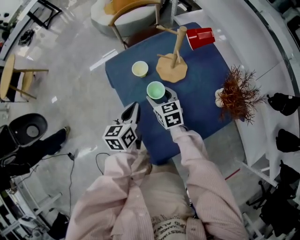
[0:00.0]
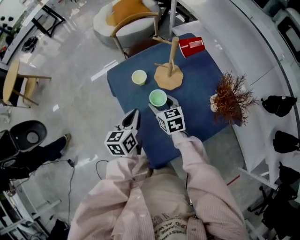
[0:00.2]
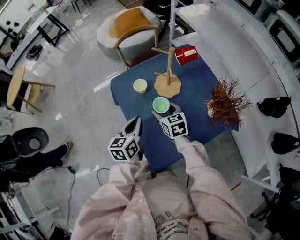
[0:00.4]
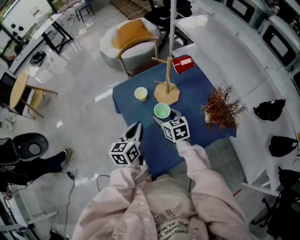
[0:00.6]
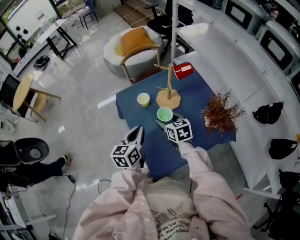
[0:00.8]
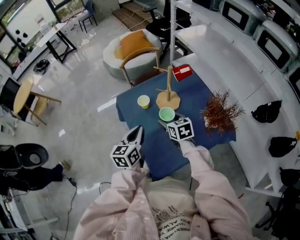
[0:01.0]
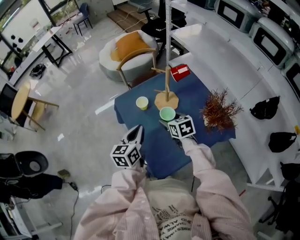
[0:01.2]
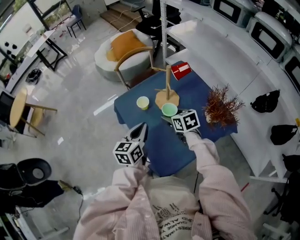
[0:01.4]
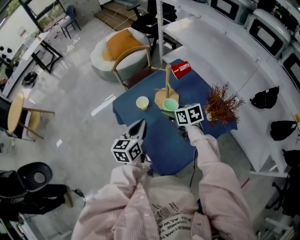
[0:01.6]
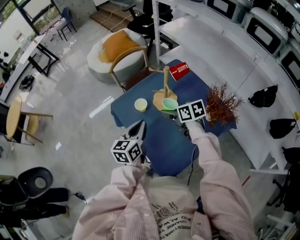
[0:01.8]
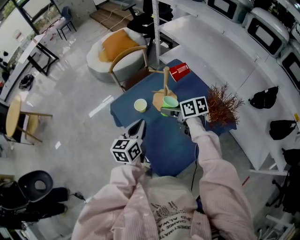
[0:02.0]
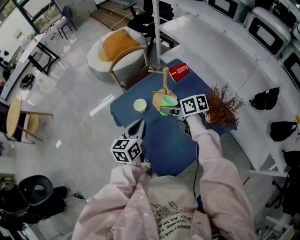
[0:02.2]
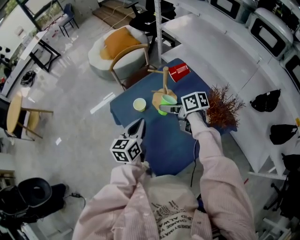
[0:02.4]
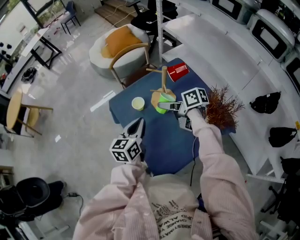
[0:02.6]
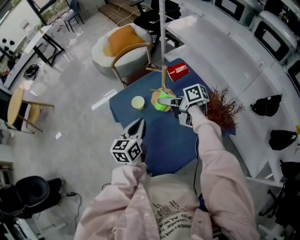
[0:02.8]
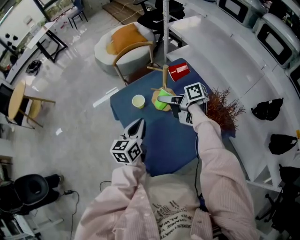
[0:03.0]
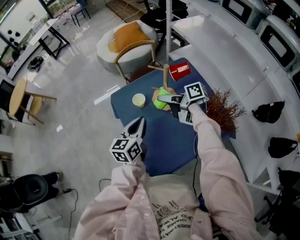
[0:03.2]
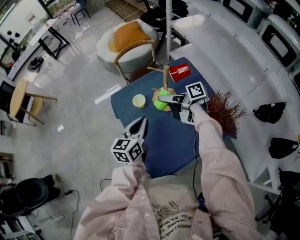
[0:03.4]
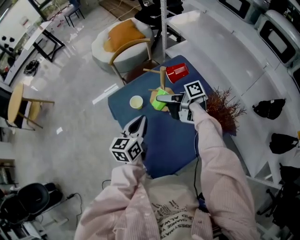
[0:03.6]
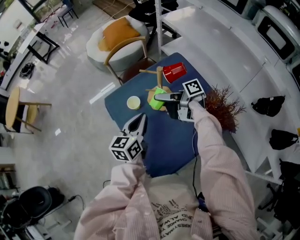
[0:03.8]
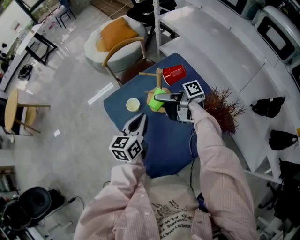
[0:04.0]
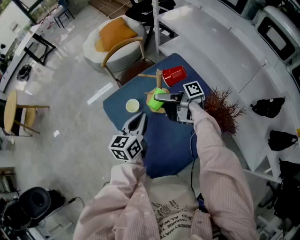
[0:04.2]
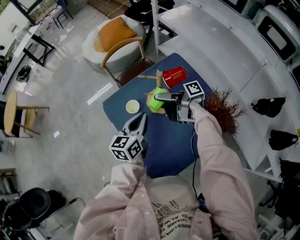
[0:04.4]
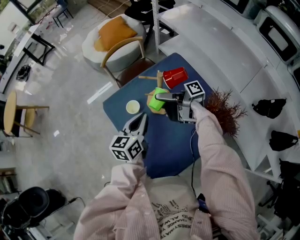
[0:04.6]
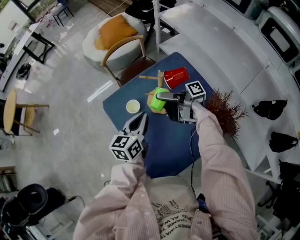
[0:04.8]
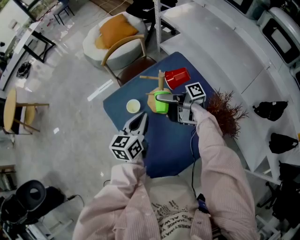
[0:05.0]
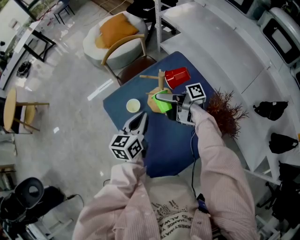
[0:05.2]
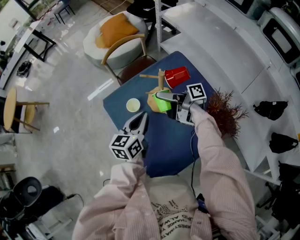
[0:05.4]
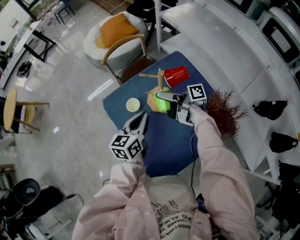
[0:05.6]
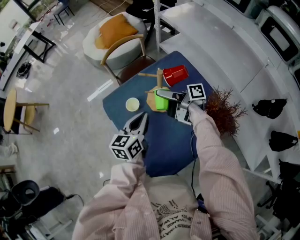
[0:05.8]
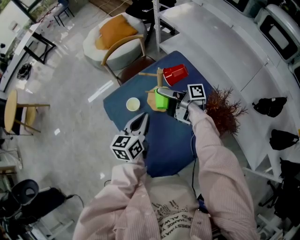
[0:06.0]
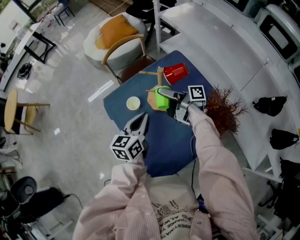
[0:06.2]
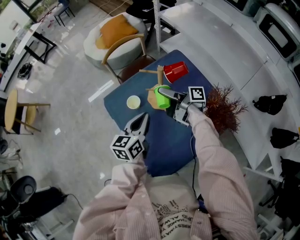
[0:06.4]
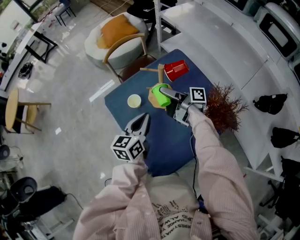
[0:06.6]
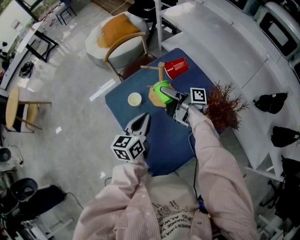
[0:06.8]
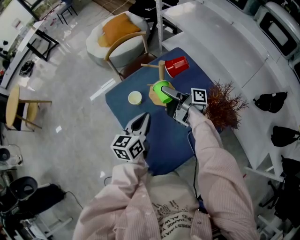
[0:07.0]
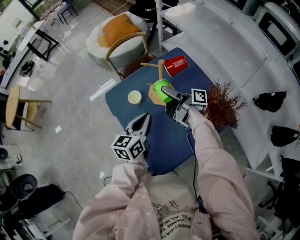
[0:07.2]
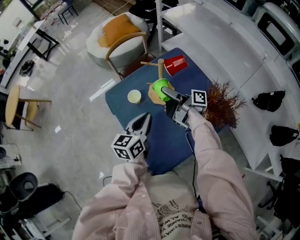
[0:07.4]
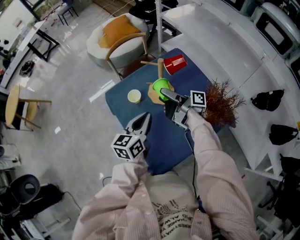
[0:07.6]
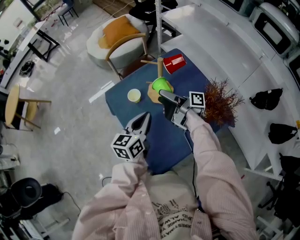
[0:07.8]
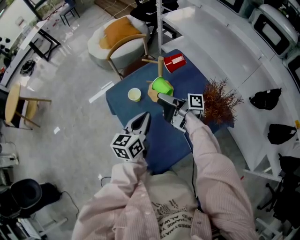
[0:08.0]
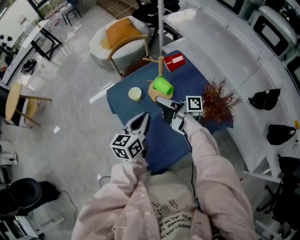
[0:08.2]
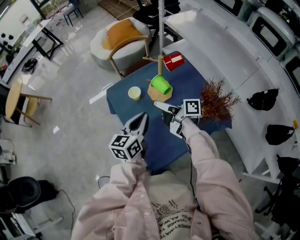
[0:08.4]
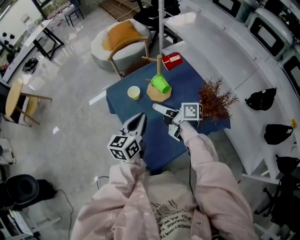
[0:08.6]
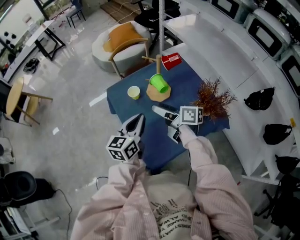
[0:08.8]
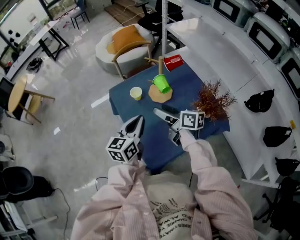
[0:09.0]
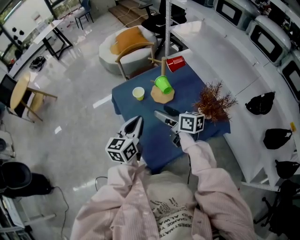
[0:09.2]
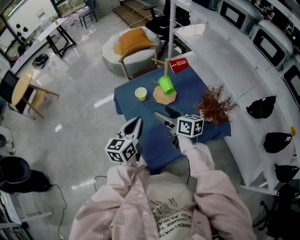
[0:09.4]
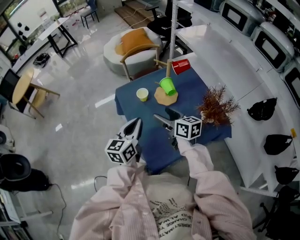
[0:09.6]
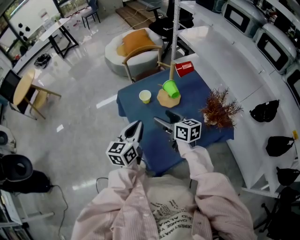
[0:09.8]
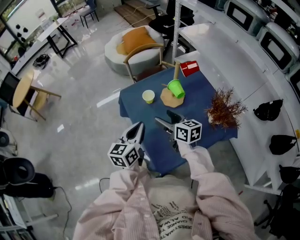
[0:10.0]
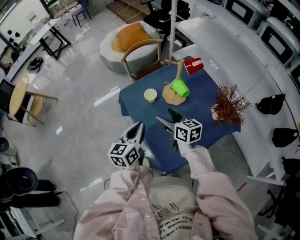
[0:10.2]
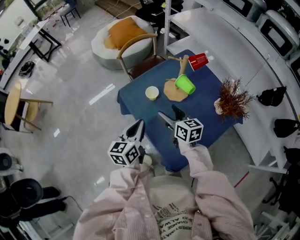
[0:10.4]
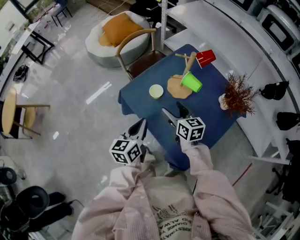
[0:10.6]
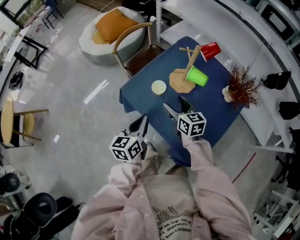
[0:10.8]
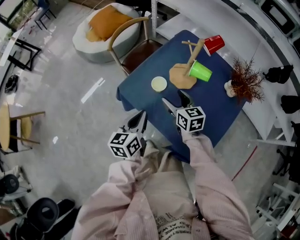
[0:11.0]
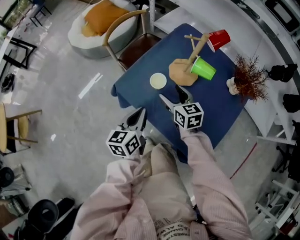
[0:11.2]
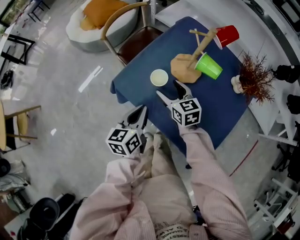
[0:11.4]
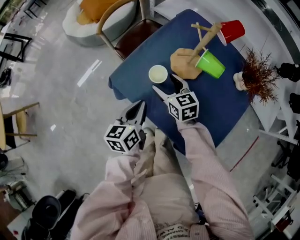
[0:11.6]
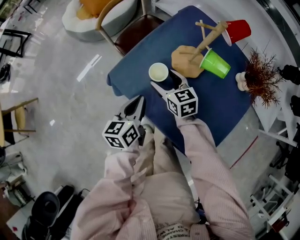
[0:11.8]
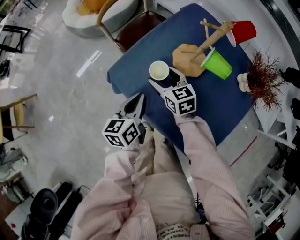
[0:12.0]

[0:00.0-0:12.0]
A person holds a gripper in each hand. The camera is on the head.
0:00.0 to 0:01.6: The right gripper is displaced upward and to the right by about 15 cm; the left gripper moves upward, some 10 cm.
0:01.6 to 0:03.0: The right gripper changes place by approximately 5 cm, and changes its angle by approximately 50 degrees.
0:03.0 to 0:04.4: The right gripper changes its angle by about 30 degrees. The left gripper moves to the right and forward, approximately 5 cm.
0:04.4 to 0:06.0: The grippers stay close to where they were, moving slightly.
0:06.0 to 0:07.6: The left gripper goes approximately 5 cm backward. Meanwhile the right gripper shifts by about 5 cm.
0:07.6 to 0:09.0: The left gripper goes about 5 cm backward. Meanwhile the right gripper moves backward, roughly 10 cm, and turns by approximately 40 degrees.
0:09.0 to 0:10.4: The right gripper heads to the left and downward, covering some 10 cm, and turns by about 30 degrees. The left gripper moves to the left and forward, roughly 15 cm.
0:10.4 to 0:12.0: The right gripper goes about 20 cm downward, forward and to the left, while the left gripper moves downward and forward, some 15 cm.

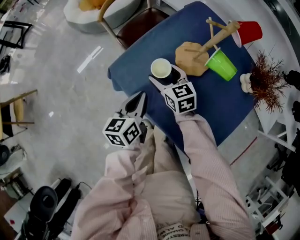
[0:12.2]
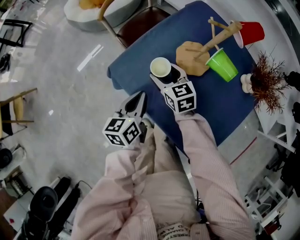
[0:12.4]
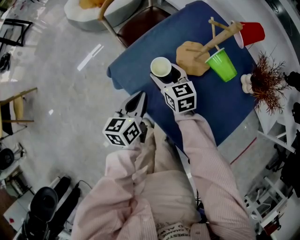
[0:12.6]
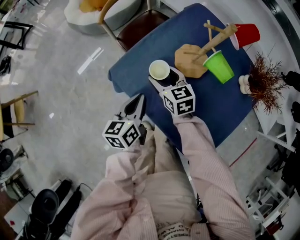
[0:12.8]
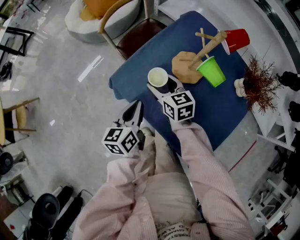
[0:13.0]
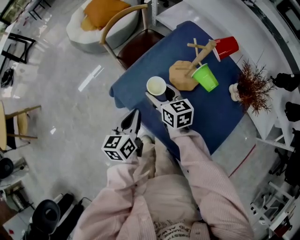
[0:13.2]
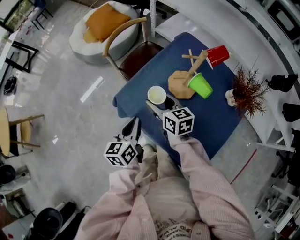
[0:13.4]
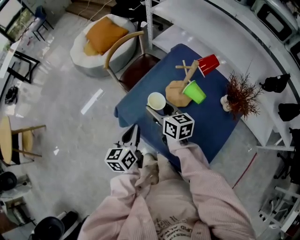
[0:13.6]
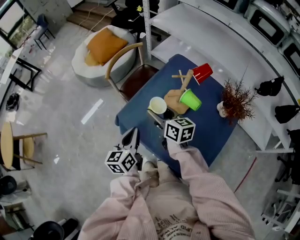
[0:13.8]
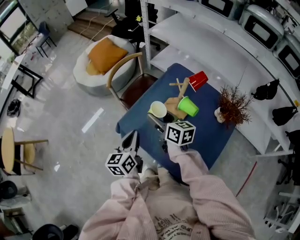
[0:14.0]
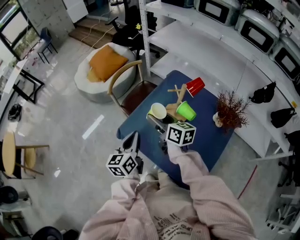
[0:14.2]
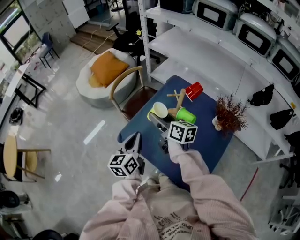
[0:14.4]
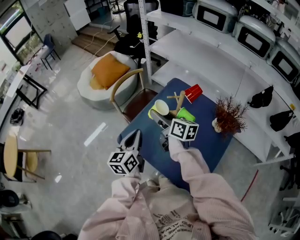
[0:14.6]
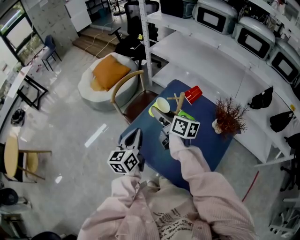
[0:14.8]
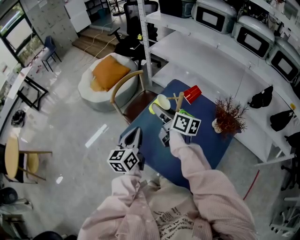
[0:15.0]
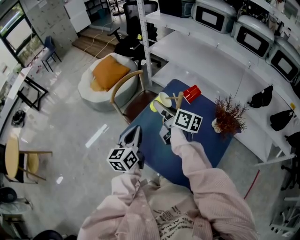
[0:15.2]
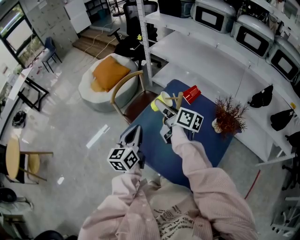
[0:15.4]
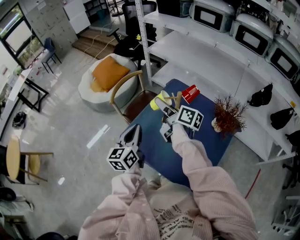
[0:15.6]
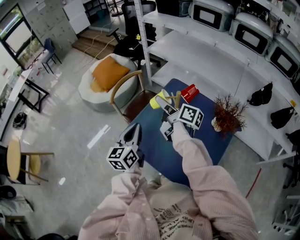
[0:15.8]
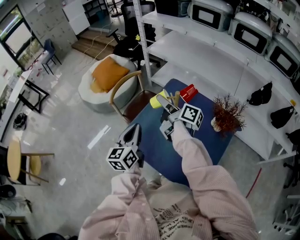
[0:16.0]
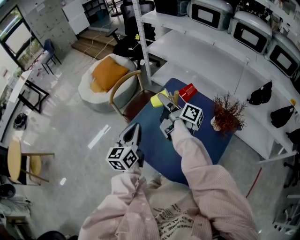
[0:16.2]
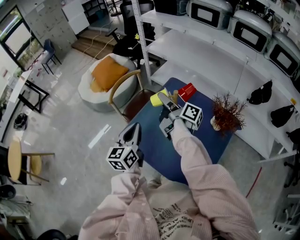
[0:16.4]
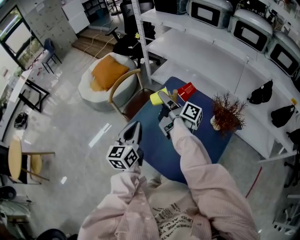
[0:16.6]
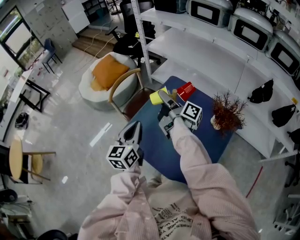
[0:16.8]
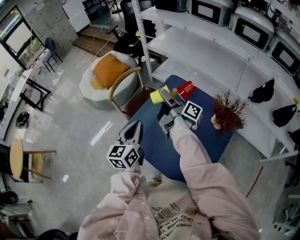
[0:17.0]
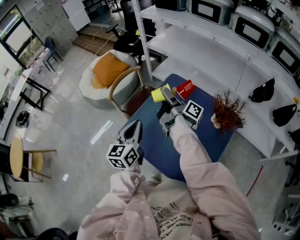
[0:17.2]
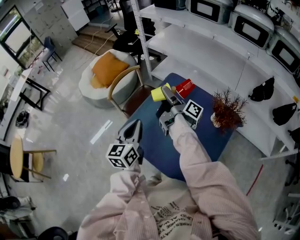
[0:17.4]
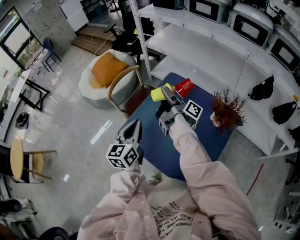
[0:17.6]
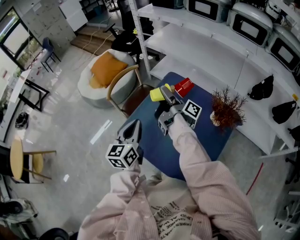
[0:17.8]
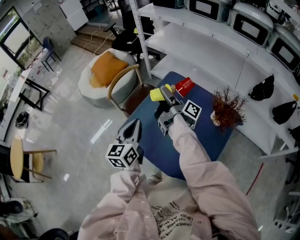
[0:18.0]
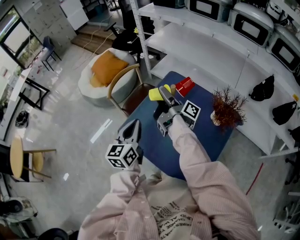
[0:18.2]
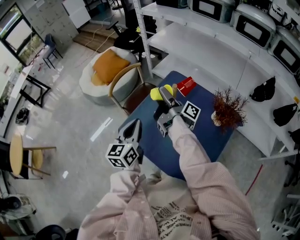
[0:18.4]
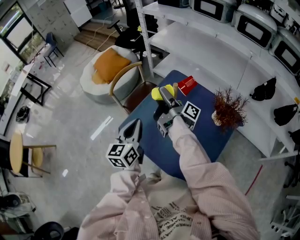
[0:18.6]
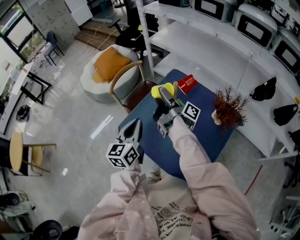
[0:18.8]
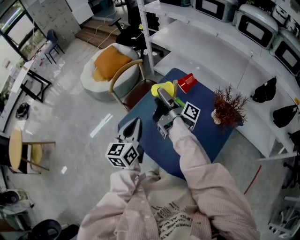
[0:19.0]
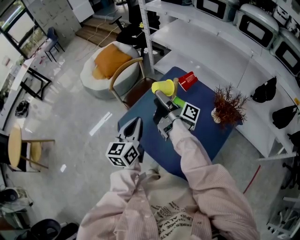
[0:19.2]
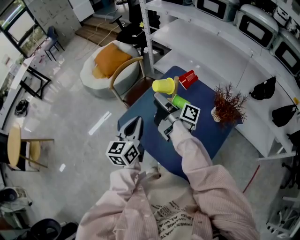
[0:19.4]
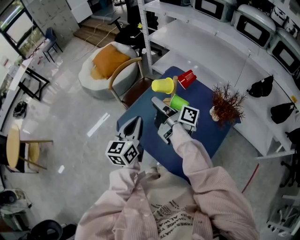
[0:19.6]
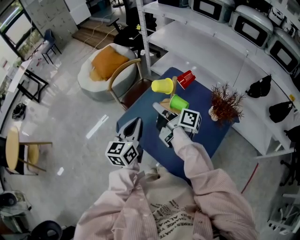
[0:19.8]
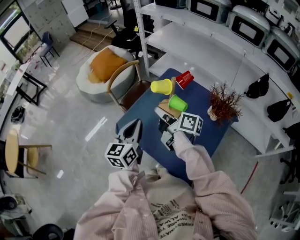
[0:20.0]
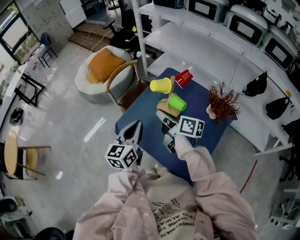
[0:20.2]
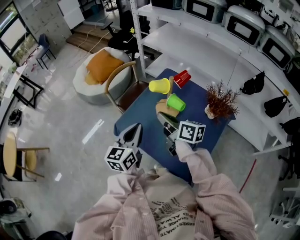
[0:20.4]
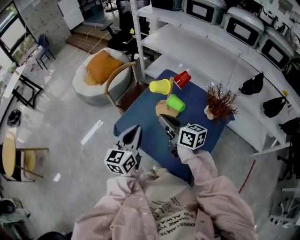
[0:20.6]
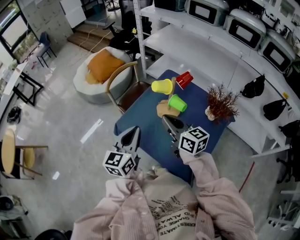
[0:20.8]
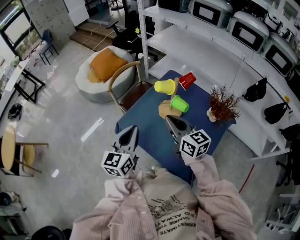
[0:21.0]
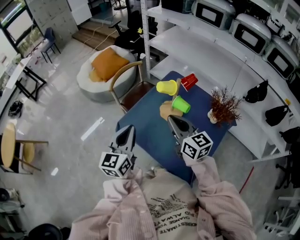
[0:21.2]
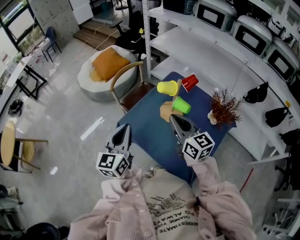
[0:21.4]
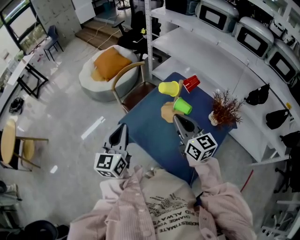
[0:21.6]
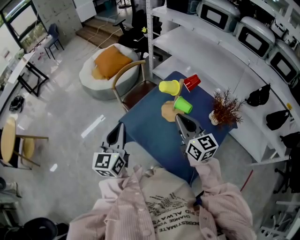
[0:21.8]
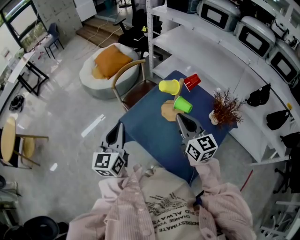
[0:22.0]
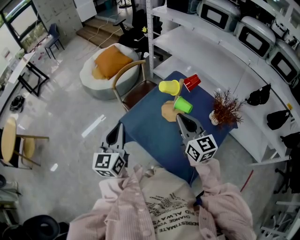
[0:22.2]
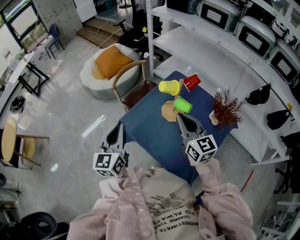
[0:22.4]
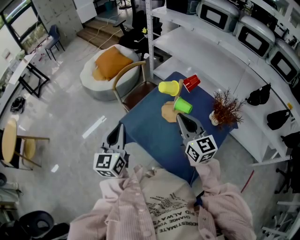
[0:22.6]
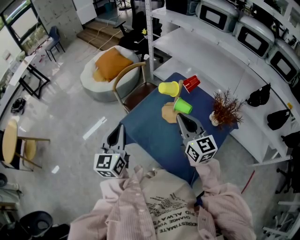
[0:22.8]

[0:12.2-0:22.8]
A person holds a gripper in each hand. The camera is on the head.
0:12.2 to 0:13.8: The grippers both shift upward by roughly 15 cm. The right gripper swivels about 30 degrees.
0:13.8 to 0:15.2: The left gripper is displaced upward and forward by some 10 cm. Meanwhile the right gripper is displaced upward, forward and to the right by some 15 cm, and swivels approximately 20 degrees.
0:15.2 to 0:16.8: The right gripper changes its angle by roughly 40 degrees.
0:16.8 to 0:18.2: The grippers stay close to where they were, moving slightly.
0:18.2 to 0:19.8: The right gripper moves backward, roughly 10 cm, rotates roughly 30 degrees, and closes.
0:19.8 to 0:21.2: The left gripper ends up some 5 cm from where it was; the right gripper heads backward, covering some 5 cm, and rotates around the line of its fingers by roughly 60 degrees, counterclockwise from behind.
0:21.2 to 0:22.8: The grippers stay close to where they were, moving slightly.

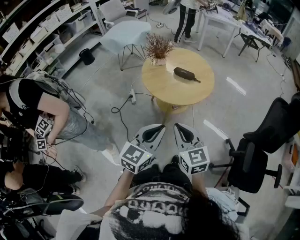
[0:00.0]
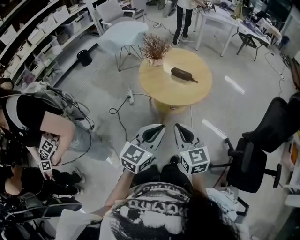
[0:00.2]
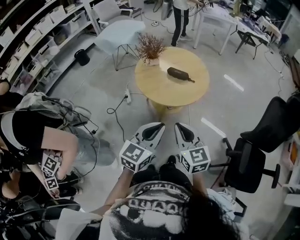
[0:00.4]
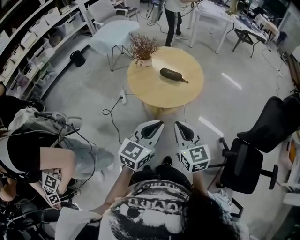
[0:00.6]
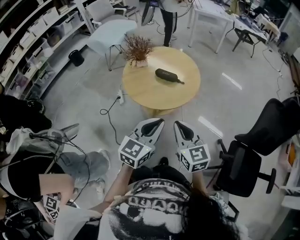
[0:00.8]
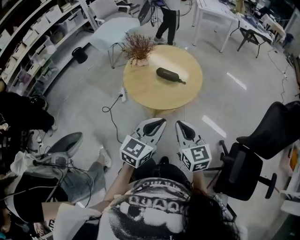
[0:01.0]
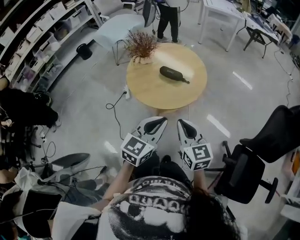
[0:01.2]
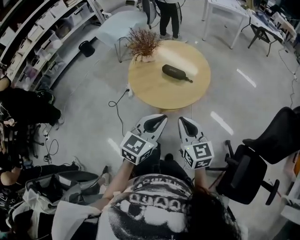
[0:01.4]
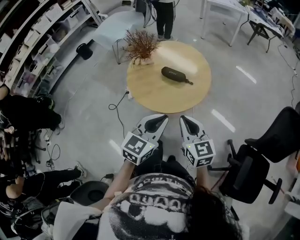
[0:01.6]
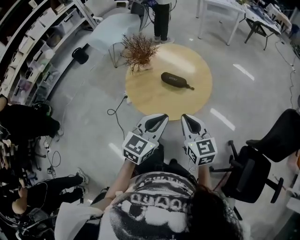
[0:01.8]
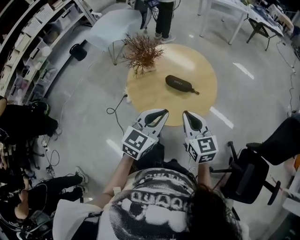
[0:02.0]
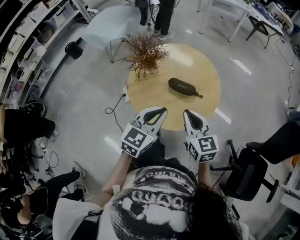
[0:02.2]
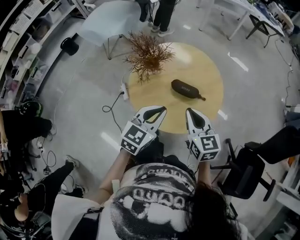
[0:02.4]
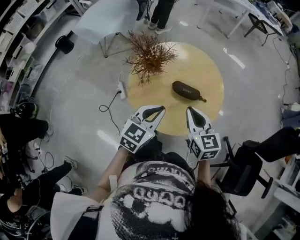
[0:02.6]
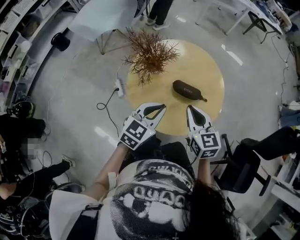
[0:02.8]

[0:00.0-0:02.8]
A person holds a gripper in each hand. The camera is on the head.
0:00.0 to 0:01.4: The grippers both shift forward and to the right by roughly 20 cm.
0:01.4 to 0:02.8: Both grippers move forward and to the left, roughly 25 cm.
